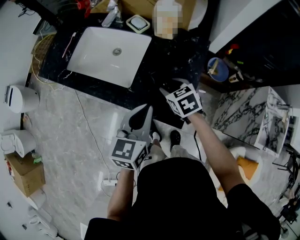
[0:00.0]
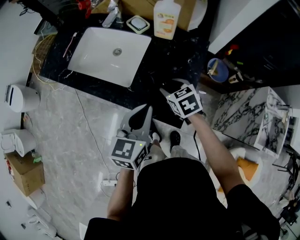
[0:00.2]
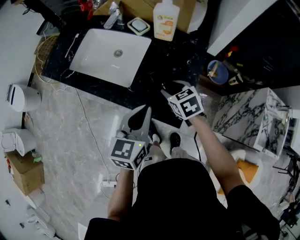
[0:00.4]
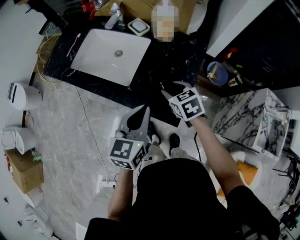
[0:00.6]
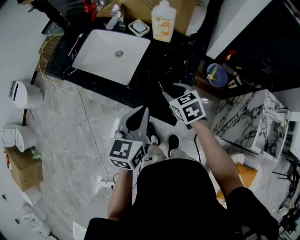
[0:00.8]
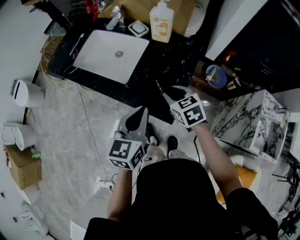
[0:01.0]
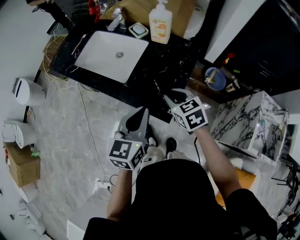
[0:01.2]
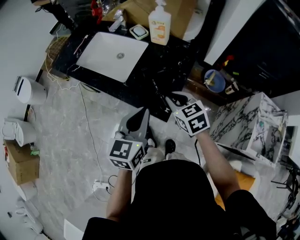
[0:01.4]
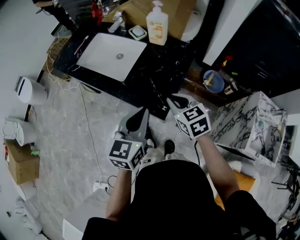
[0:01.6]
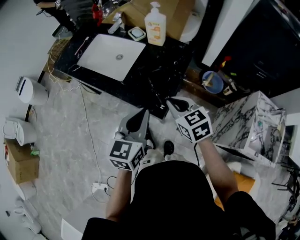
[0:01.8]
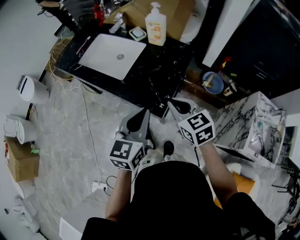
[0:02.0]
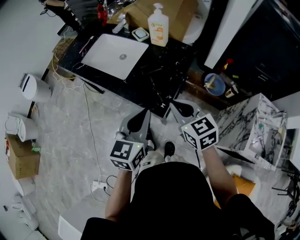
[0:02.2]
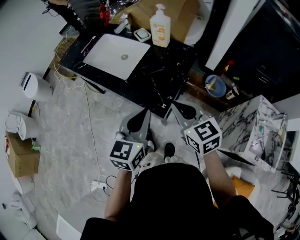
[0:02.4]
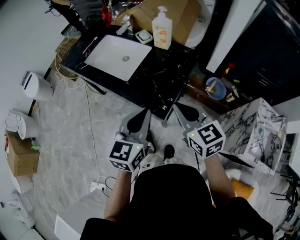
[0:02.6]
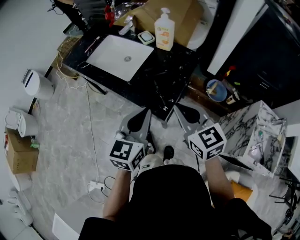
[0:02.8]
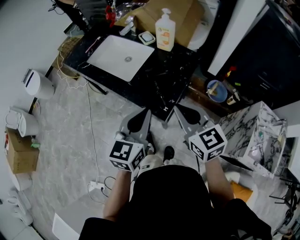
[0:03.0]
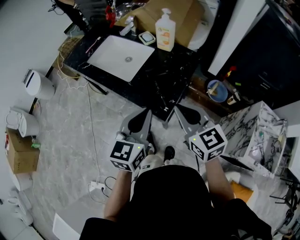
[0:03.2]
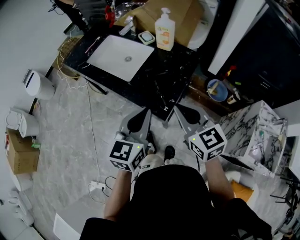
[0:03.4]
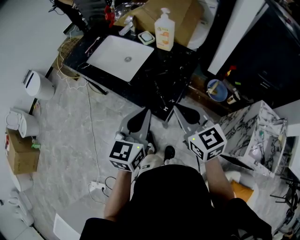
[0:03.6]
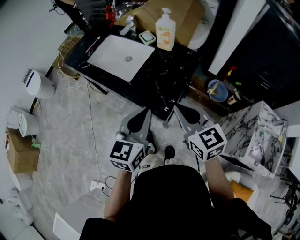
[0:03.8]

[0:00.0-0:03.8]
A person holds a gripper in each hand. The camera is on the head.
0:00.0 to 0:01.2: The left gripper is displaced backward by approximately 5 cm. Meanwhile the right gripper shifts roughly 10 cm backward and upward, and closes its fingers.
0:01.2 to 0:02.6: The left gripper shifts roughly 5 cm backward. The right gripper is displaced upward and backward by approximately 15 cm, changes its angle by some 20 degrees, and closes up.
0:02.6 to 0:03.8: The grippers make only small movements.

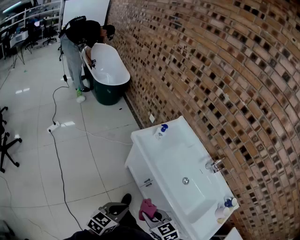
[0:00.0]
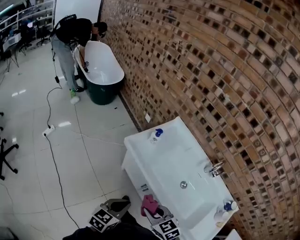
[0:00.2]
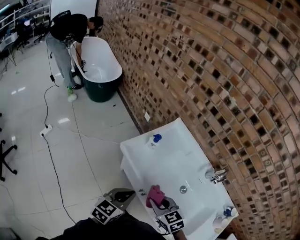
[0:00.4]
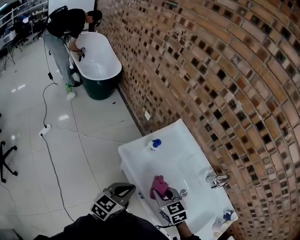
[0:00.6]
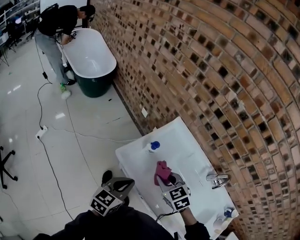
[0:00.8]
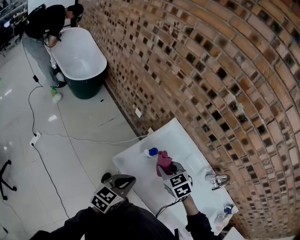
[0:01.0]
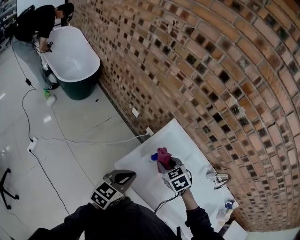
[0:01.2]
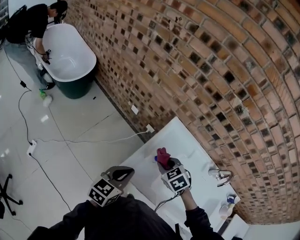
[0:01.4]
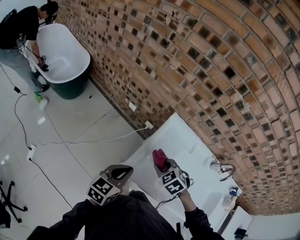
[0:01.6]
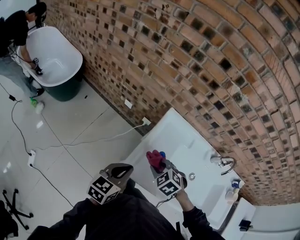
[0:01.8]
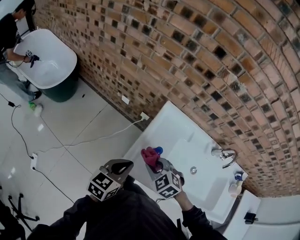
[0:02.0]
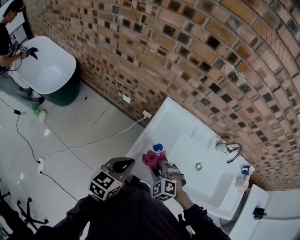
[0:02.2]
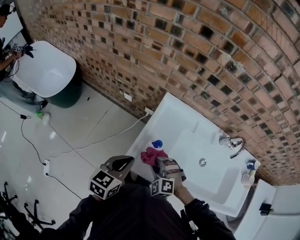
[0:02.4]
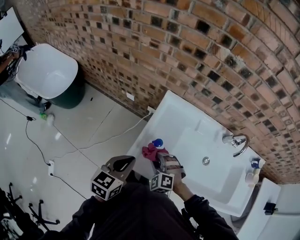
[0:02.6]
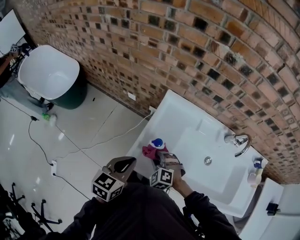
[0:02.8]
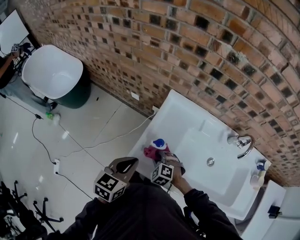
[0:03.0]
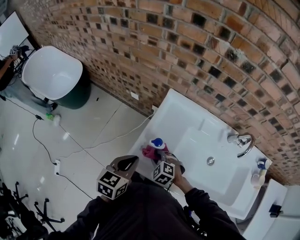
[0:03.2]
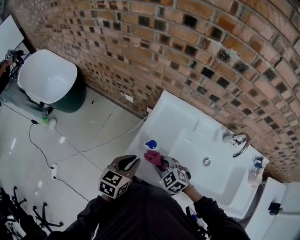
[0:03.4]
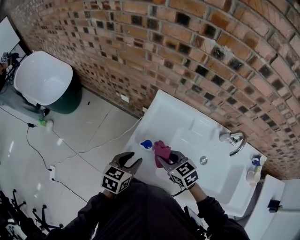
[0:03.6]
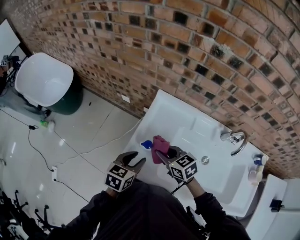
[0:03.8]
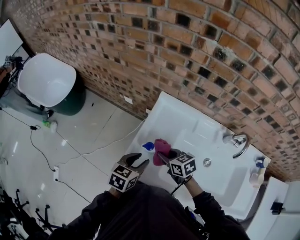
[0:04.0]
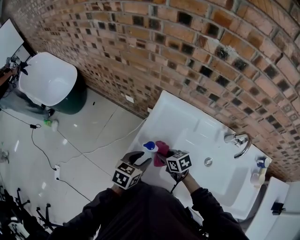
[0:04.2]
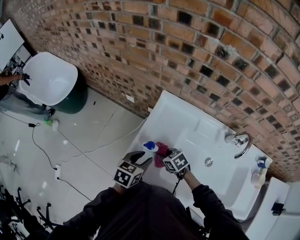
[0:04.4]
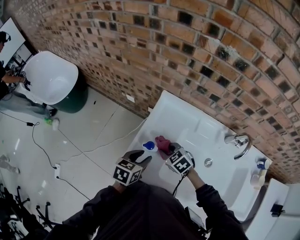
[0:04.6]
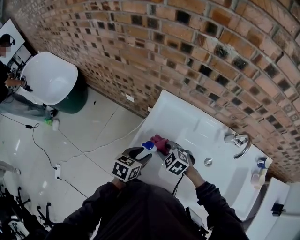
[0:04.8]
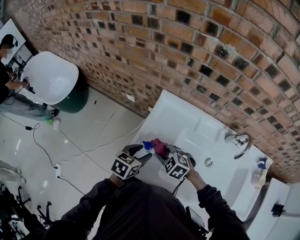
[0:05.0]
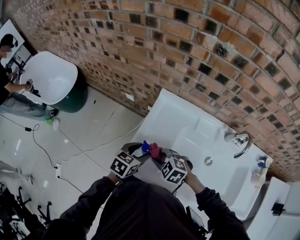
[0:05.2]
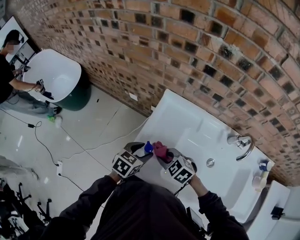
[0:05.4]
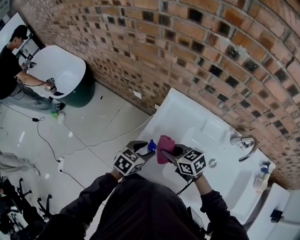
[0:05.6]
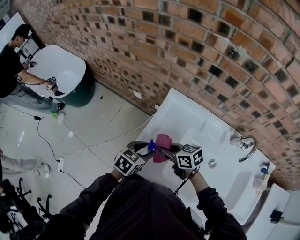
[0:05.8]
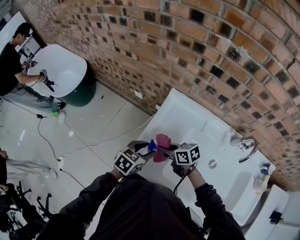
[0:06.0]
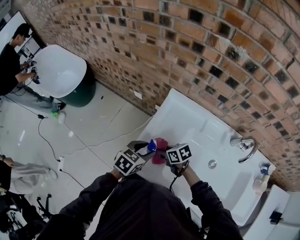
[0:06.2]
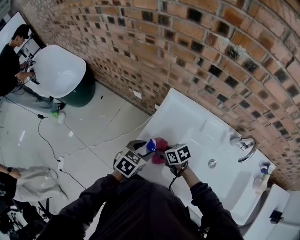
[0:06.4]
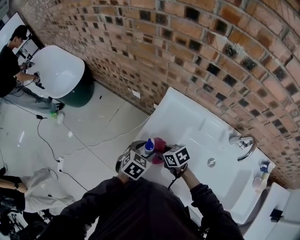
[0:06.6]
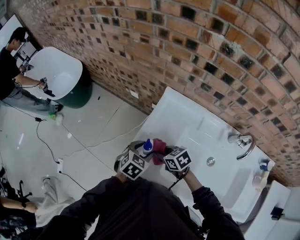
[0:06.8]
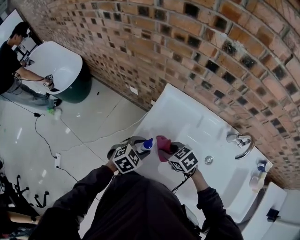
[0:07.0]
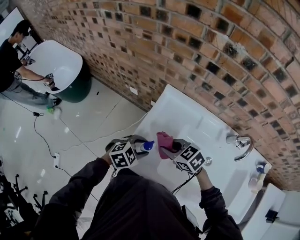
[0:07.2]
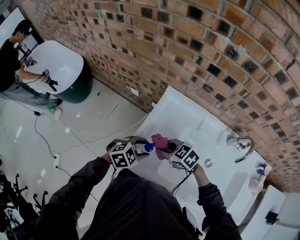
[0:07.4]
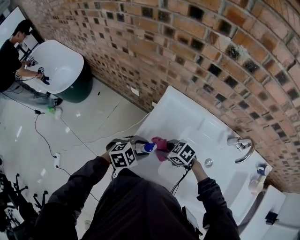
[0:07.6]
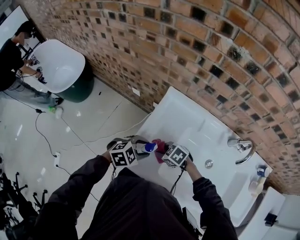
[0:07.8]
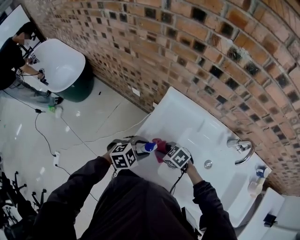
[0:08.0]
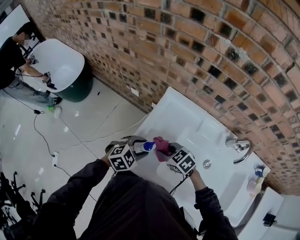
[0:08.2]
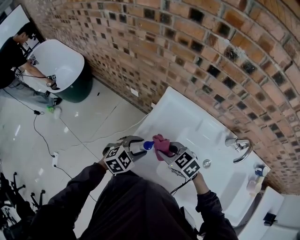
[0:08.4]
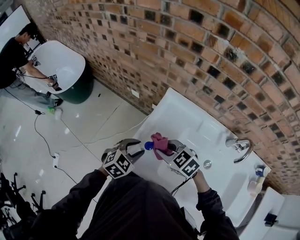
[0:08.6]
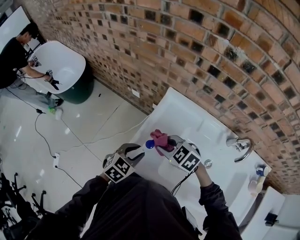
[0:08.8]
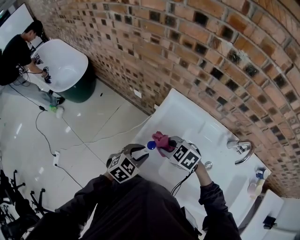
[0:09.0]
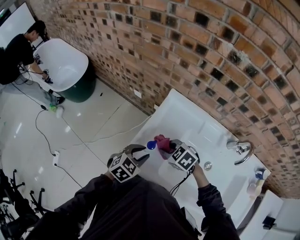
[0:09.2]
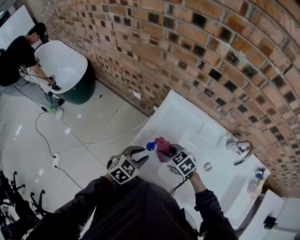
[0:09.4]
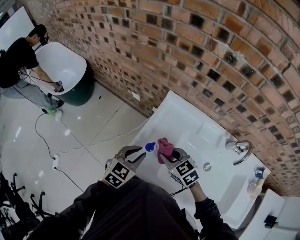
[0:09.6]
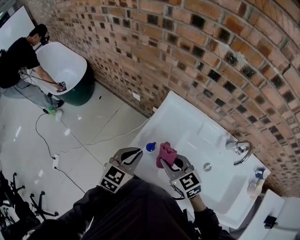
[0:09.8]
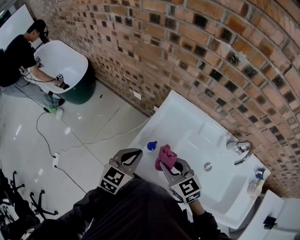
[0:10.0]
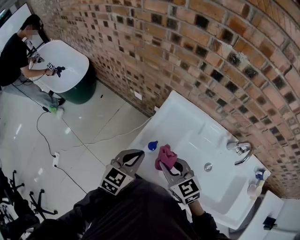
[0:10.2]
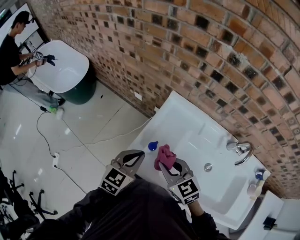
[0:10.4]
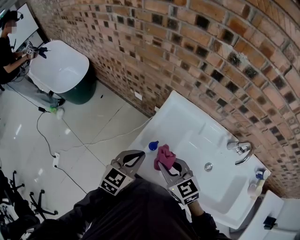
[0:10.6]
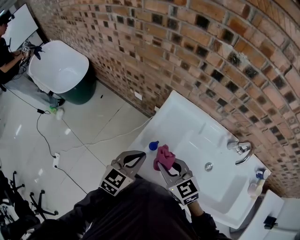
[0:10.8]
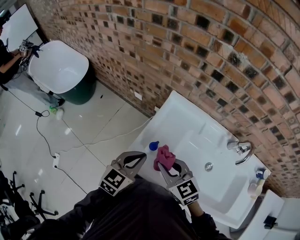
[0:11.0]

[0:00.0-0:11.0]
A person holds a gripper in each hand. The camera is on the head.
0:00.0 to 0:01.6: Both grippers are carried forward, approximately 50 cm. The right gripper turns by roughly 30 degrees.
0:01.6 to 0:03.2: The left gripper shifts approximately 5 cm to the right. Meanwhile the right gripper moves downward, approximately 15 cm.
0:03.2 to 0:04.8: The right gripper swings up and down, roughly 10 cm each way, with 2 reversals, while the left gripper is displaced downward and to the right by some 10 cm, and opens.
0:04.8 to 0:06.2: The right gripper moves downward, approximately 5 cm, and twists some 50 degrees clockwise, seen from behind.
0:06.2 to 0:07.8: The left gripper turns by some 40 degrees; the right gripper travels upward and back again, about 10 cm each way, and rotates roughly 40 degrees.
0:07.8 to 0:09.4: The right gripper is displaced upward by roughly 10 cm, while the left gripper turns by about 30 degrees.
0:09.4 to 0:11.0: The right gripper shifts roughly 15 cm upward and backward, and turns by approximately 30 degrees, while the left gripper travels upward by approximately 10 cm, rotates about 20 degrees, and closes.

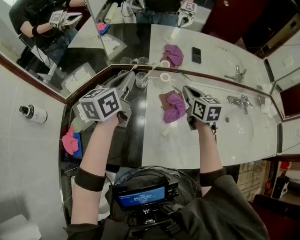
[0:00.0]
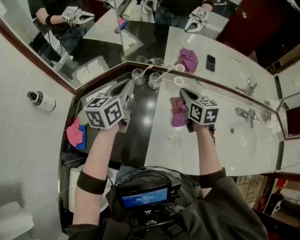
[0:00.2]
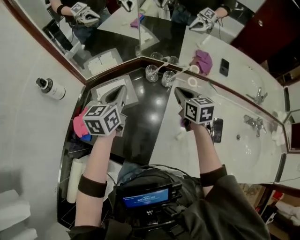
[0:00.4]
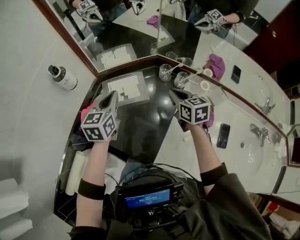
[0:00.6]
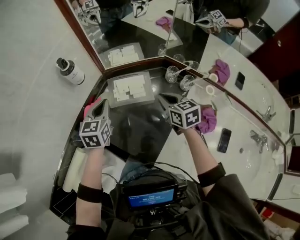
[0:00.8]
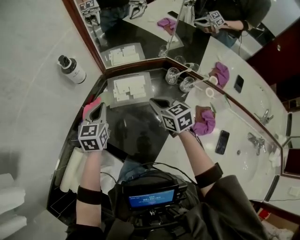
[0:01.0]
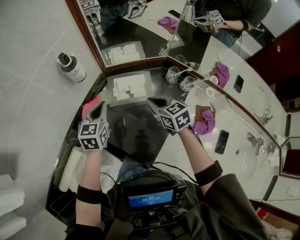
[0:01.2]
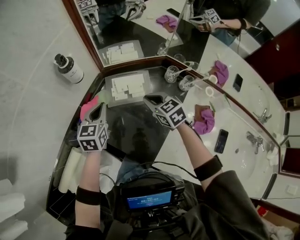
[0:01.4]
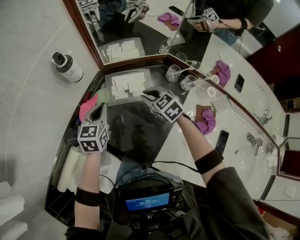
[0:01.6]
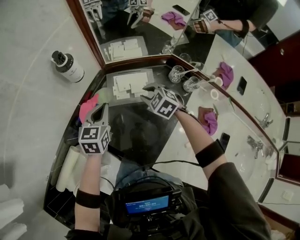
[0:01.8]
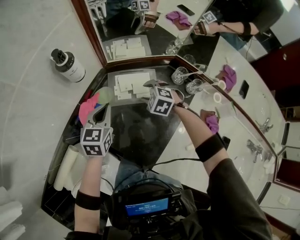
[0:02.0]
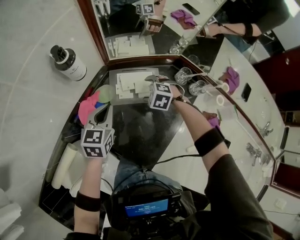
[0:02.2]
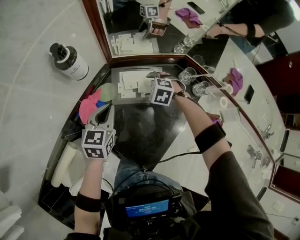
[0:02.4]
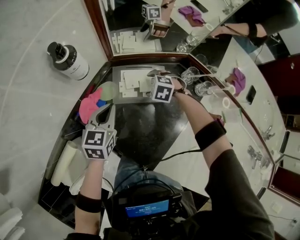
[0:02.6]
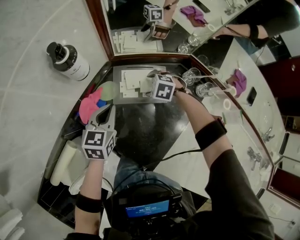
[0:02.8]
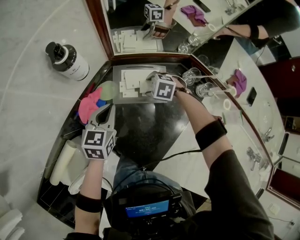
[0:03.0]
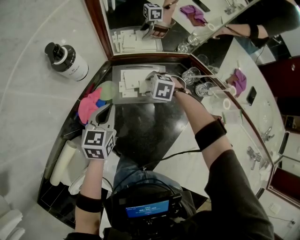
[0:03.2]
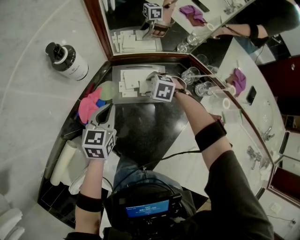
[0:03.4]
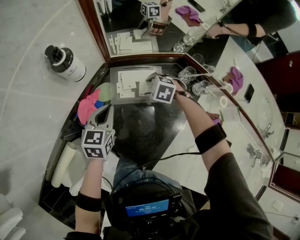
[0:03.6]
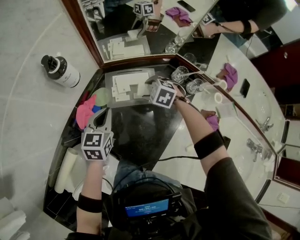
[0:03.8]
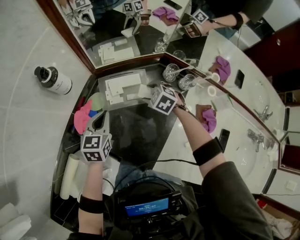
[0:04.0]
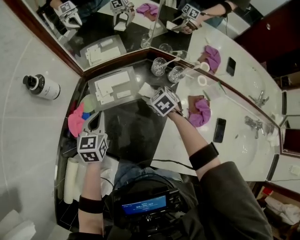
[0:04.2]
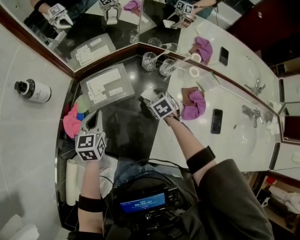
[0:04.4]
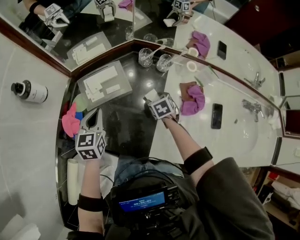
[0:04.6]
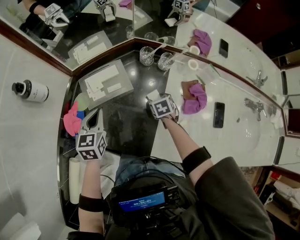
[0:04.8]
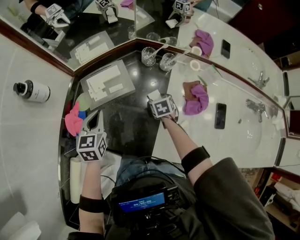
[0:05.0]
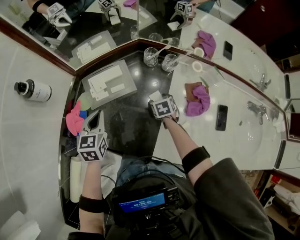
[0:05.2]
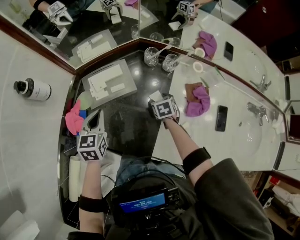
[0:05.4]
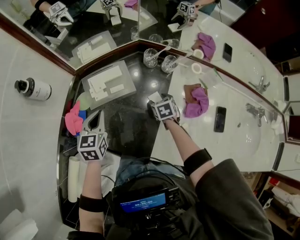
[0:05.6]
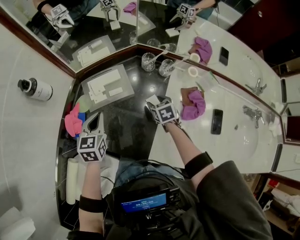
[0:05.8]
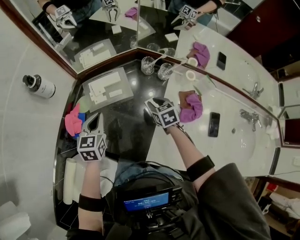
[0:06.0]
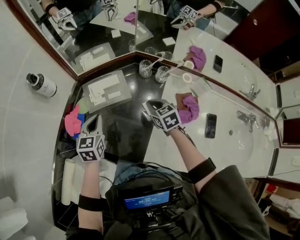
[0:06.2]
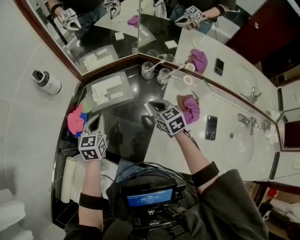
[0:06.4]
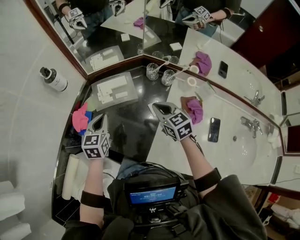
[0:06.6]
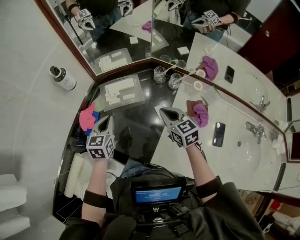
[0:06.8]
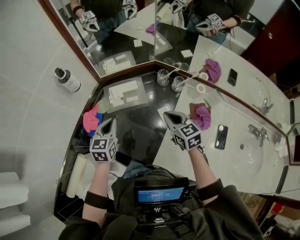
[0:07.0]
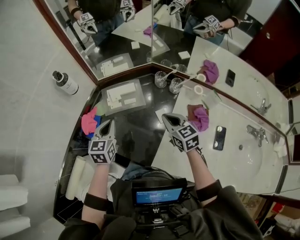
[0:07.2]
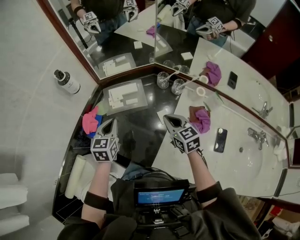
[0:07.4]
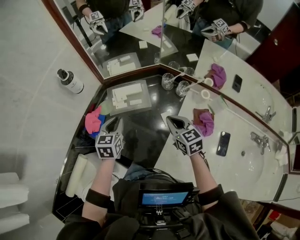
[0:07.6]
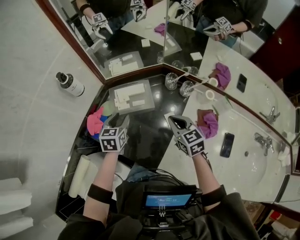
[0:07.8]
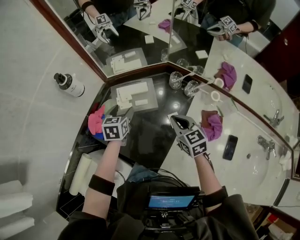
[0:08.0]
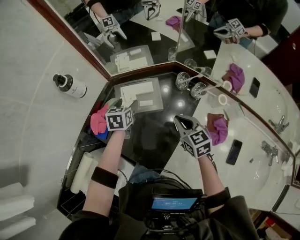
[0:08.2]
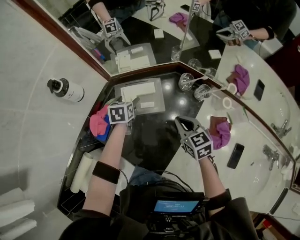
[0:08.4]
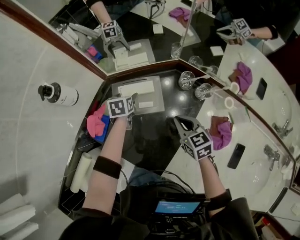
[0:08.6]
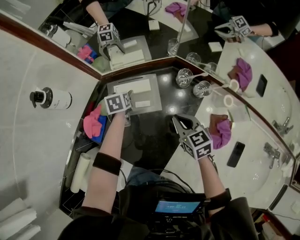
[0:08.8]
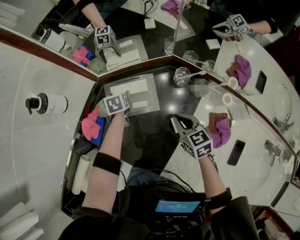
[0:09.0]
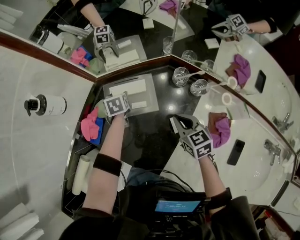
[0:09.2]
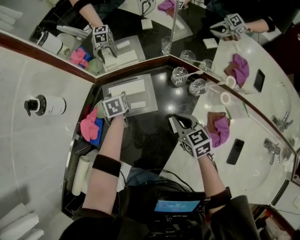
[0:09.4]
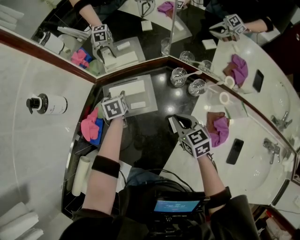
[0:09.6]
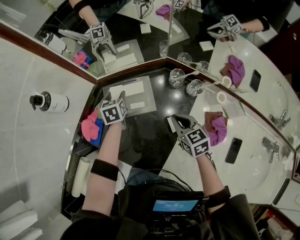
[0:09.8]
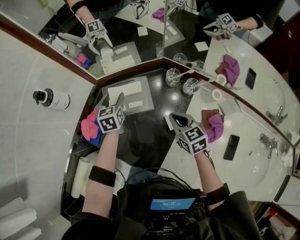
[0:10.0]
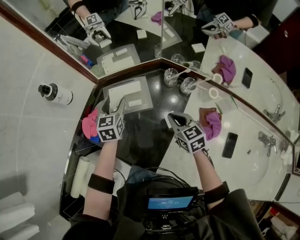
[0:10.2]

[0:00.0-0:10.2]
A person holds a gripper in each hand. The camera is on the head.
0:00.0 to 0:01.4: The right gripper changes place by some 40 cm, and rotates about 60 degrees, while the left gripper changes place by roughly 40 cm, and swivels roughly 40 degrees.
0:01.4 to 0:03.0: The left gripper travels downward by roughly 5 cm, while the right gripper is displaced downward and forward by approximately 20 cm, points its fingers approximately 30 degrees further downward, and opens its fingers.
0:03.0 to 0:04.4: The right gripper shifts by approximately 20 cm, and rolls clockwise, seen from behind, by roughly 60 degrees, while the left gripper ends up roughly 10 cm from where it was.
0:05.8 to 0:07.2: The left gripper heads upward, covering roughly 5 cm, while the right gripper moves upward, approximately 20 cm, turns by some 30 degrees, and closes up.
0:07.2 to 0:08.8: The left gripper is displaced forward and downward by some 30 cm, tips its fingers downward by approximately 30 degrees, and opens up. Meanwhile the right gripper shifts roughly 15 cm forward and downward.
0:08.8 to 0:10.2: The left gripper travels upward and backward by roughly 15 cm, and rotates approximately 30 degrees.
